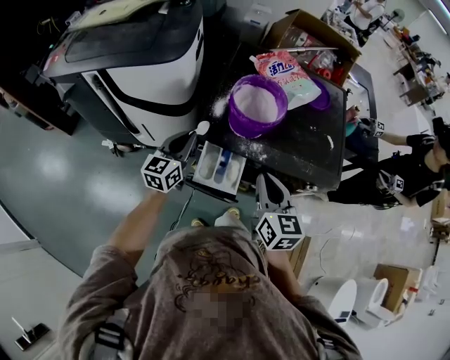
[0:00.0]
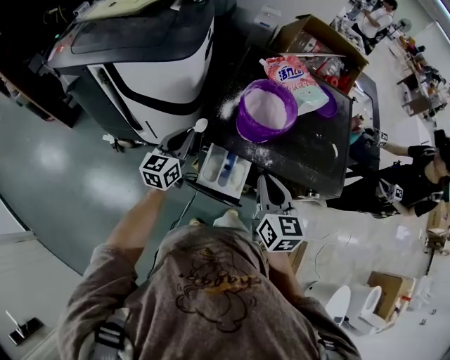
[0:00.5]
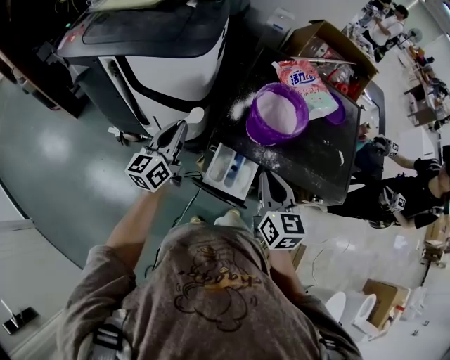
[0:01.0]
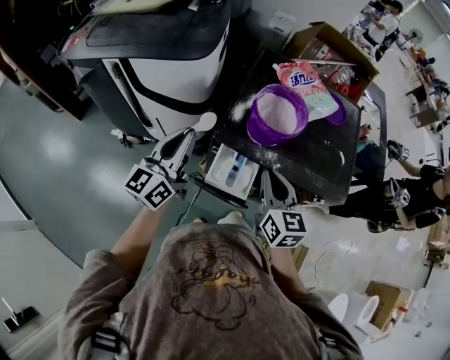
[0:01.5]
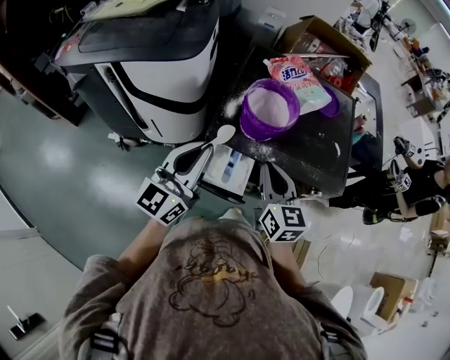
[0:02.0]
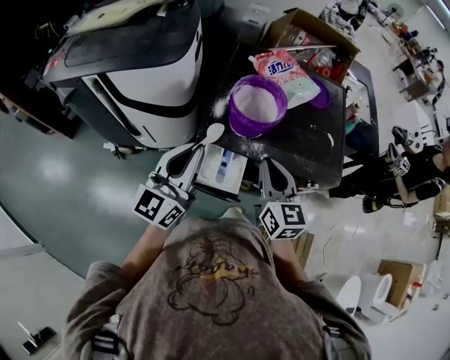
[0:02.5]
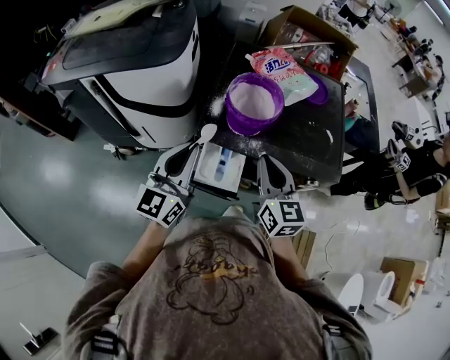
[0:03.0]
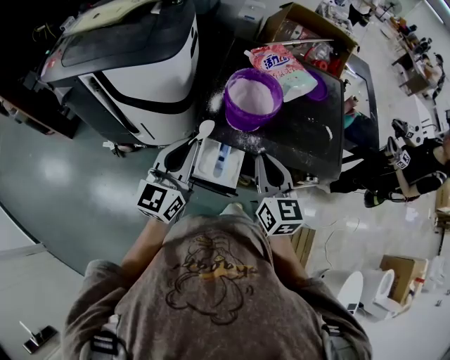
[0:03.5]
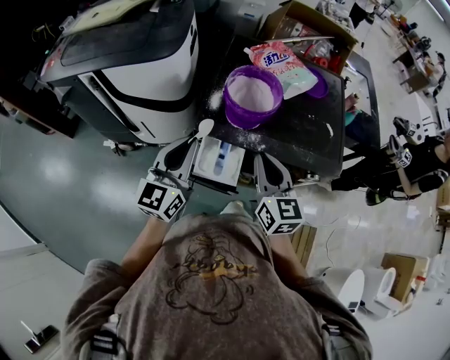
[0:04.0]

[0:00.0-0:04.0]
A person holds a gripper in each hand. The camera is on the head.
0:00.0 to 0:02.0: The left gripper moves upward and backward, some 20 cm, and rotates some 20 degrees.
0:02.0 to 0:04.0: The grippers stay close to where they were, moving slightly.

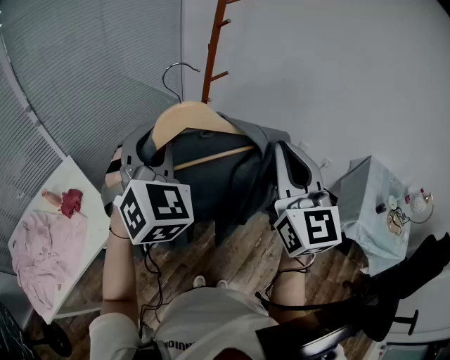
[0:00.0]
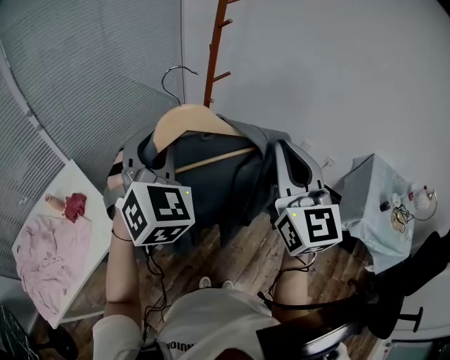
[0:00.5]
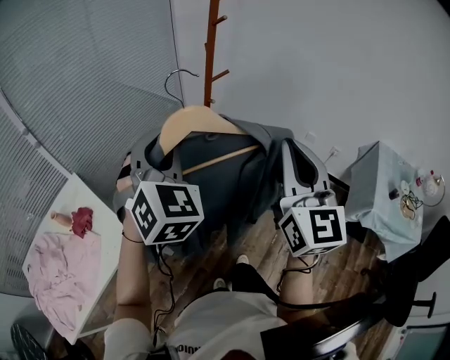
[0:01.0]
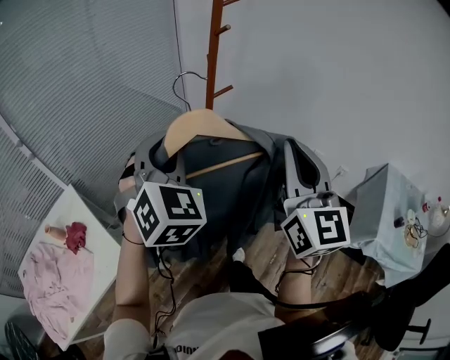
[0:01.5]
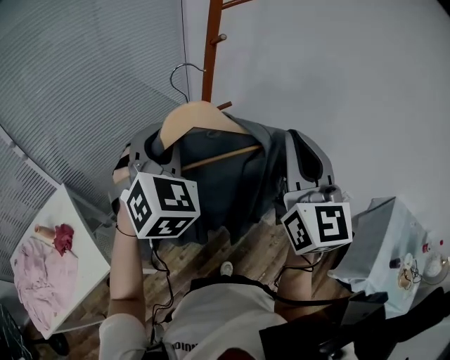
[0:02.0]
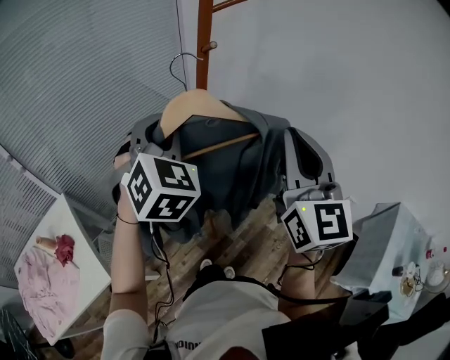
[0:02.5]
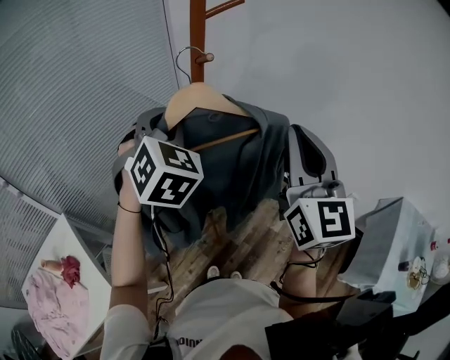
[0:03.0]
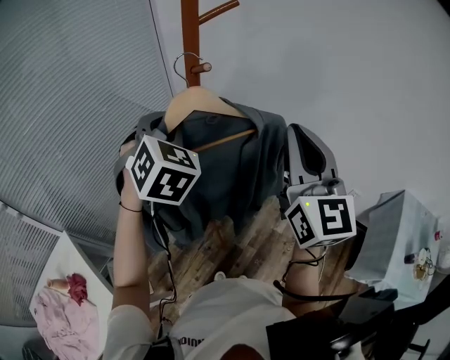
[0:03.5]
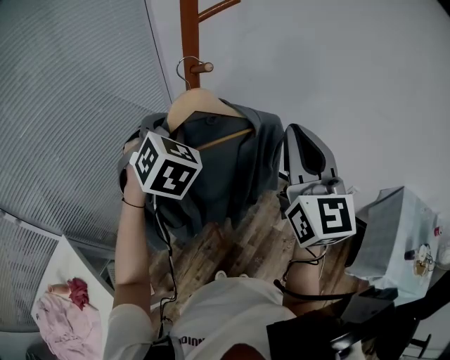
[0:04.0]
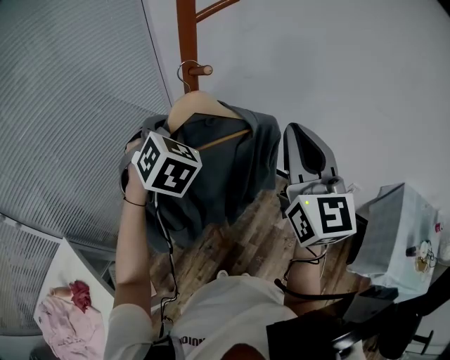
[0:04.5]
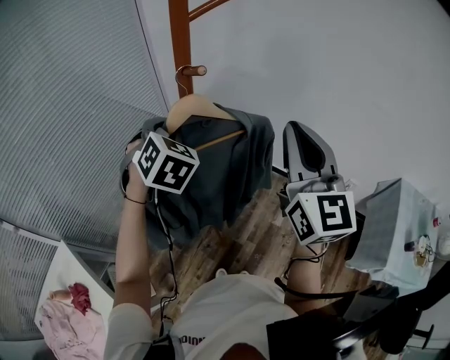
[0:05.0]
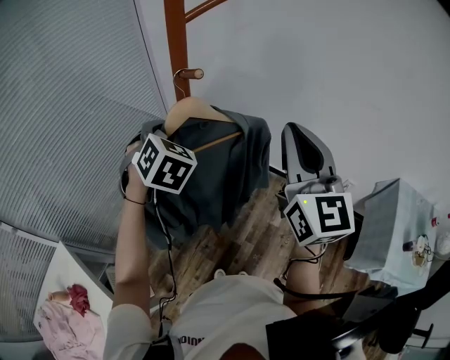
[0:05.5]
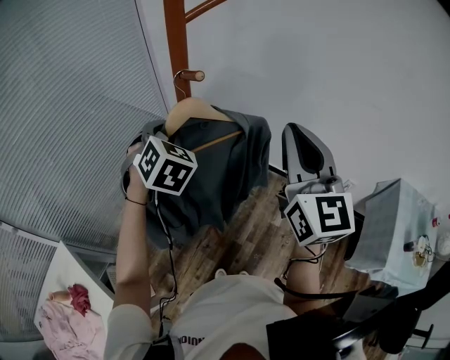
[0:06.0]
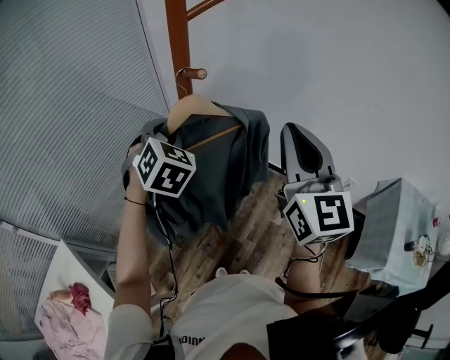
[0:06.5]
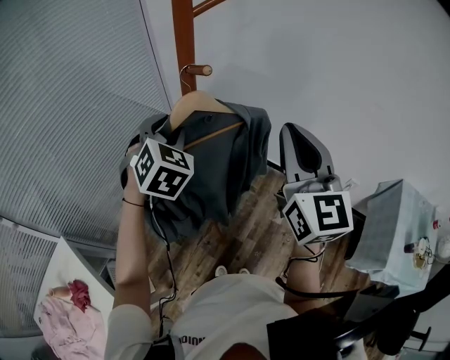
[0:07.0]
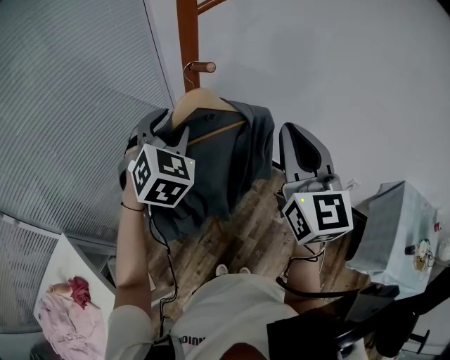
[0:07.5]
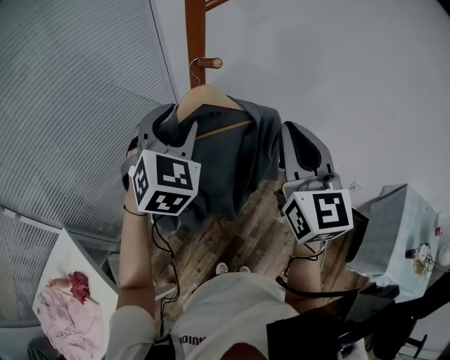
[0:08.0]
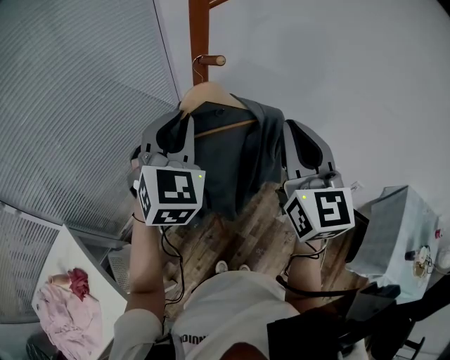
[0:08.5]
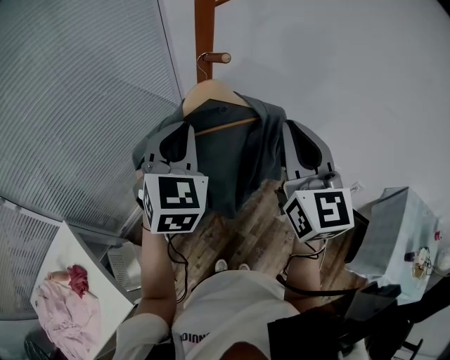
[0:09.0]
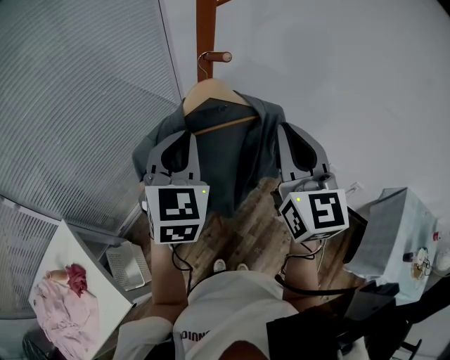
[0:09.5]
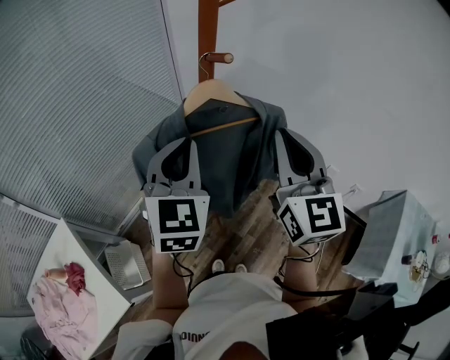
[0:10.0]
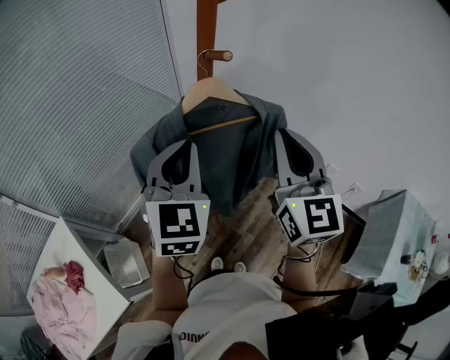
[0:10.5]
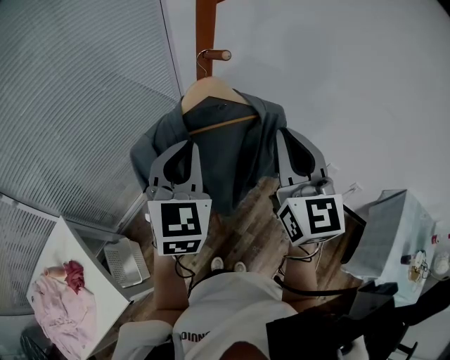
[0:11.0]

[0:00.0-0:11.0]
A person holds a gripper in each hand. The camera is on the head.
0:00.0 to 0:02.0: The grippers both shift forward by some 20 cm.
0:02.0 to 0:03.5: The right gripper travels forward by approximately 10 cm. Meanwhile the left gripper travels forward by about 15 cm.
0:03.5 to 0:05.5: The left gripper goes approximately 5 cm downward.
0:05.5 to 0:07.5: The left gripper opens up.
0:07.5 to 0:09.0: The left gripper is displaced backward by approximately 5 cm, and closes.
0:09.0 to 0:11.0: There are only small adjustments of the grippers.

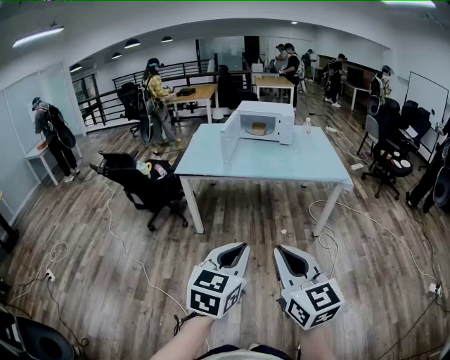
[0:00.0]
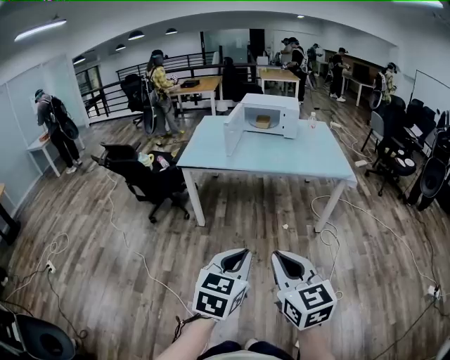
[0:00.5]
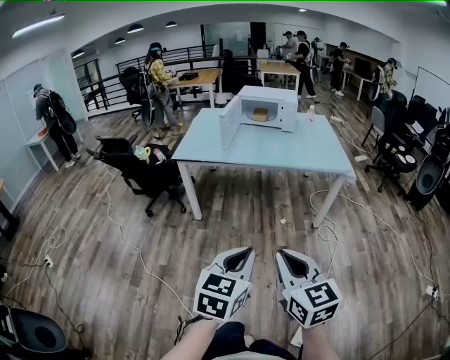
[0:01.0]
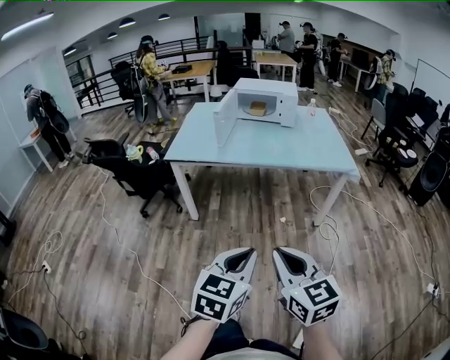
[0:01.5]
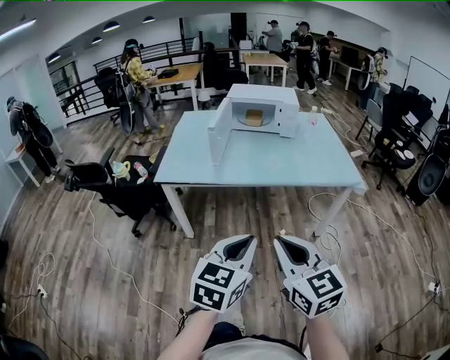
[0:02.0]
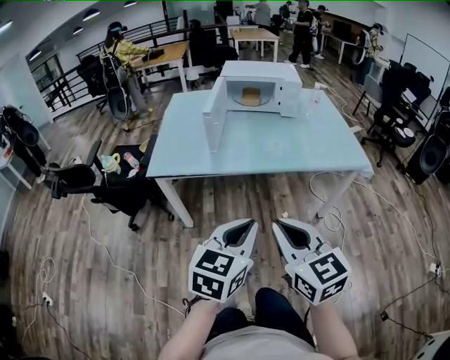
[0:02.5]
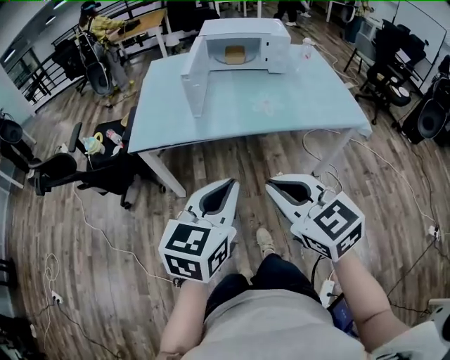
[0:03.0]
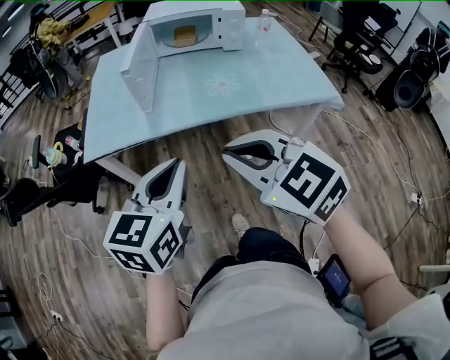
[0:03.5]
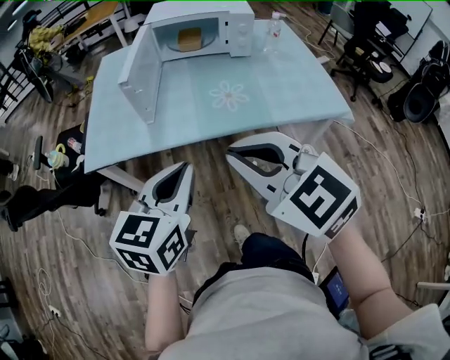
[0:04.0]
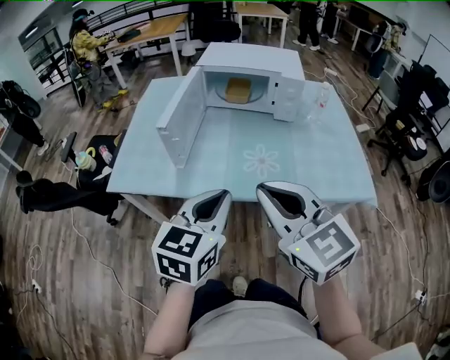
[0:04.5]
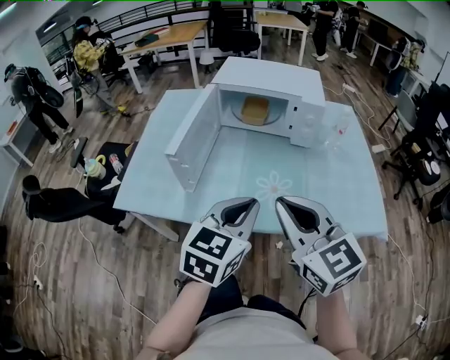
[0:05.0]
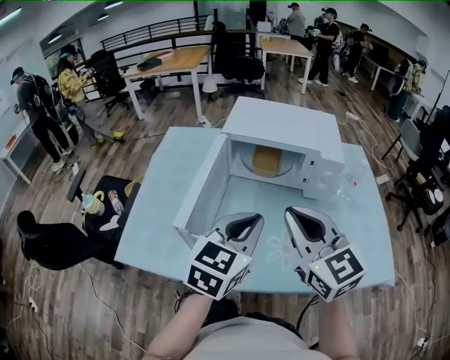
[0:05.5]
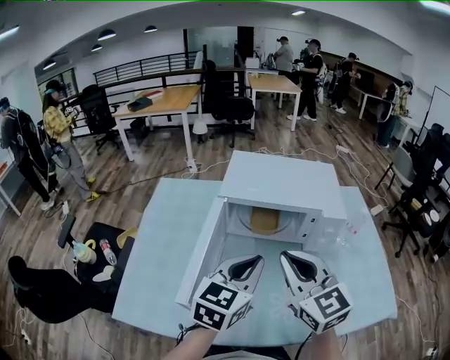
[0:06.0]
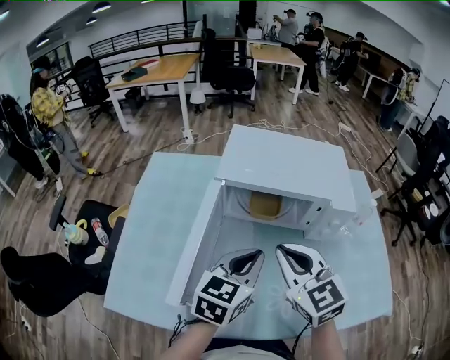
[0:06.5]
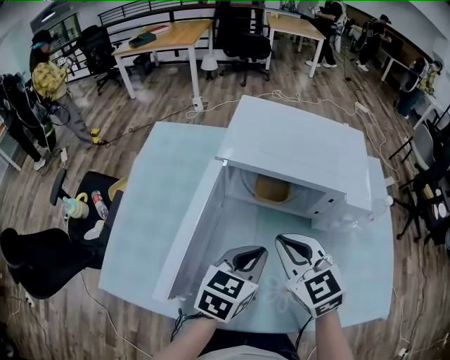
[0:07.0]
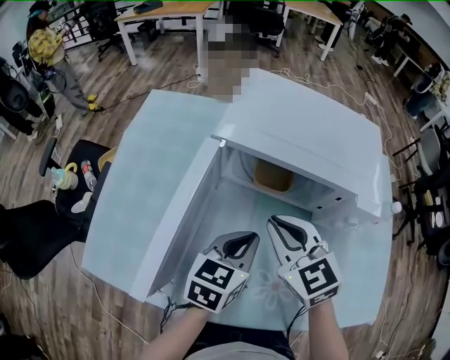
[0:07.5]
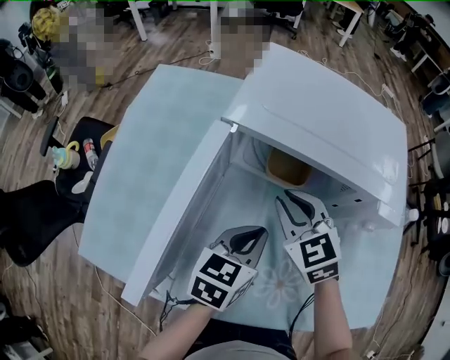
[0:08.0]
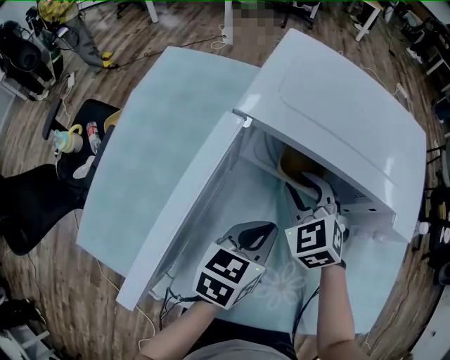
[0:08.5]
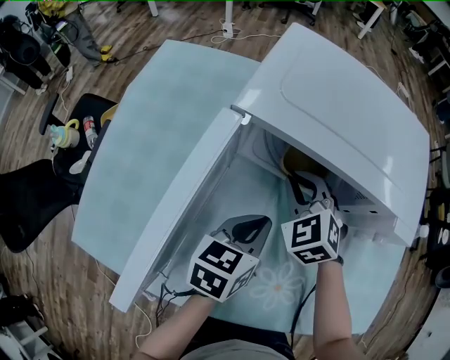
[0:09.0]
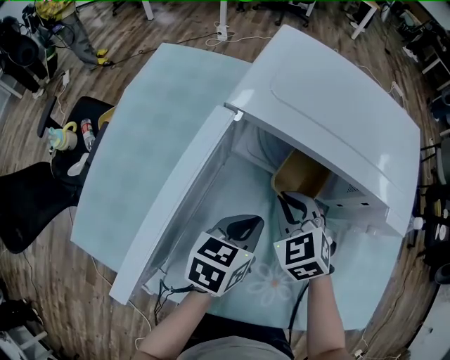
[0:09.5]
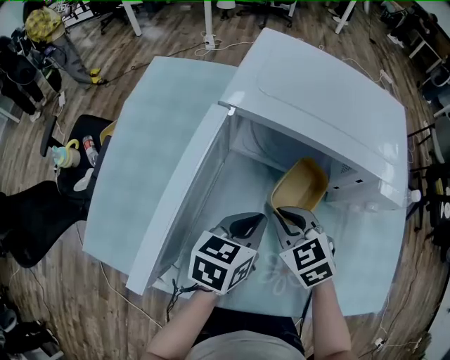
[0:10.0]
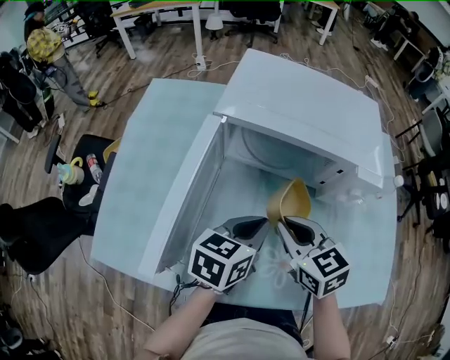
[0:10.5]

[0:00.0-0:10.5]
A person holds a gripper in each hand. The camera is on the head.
0:00.0 to 0:02.0: The grippers both shift forward by roughly 25 cm.
0:02.0 to 0:04.0: The two grippers go approximately 25 cm forward. The right gripper rotates about 30 degrees.
0:04.0 to 0:06.5: Both grippers are carried forward, roughly 50 cm.
0:06.5 to 0:08.5: The right gripper shifts about 25 cm downward and forward, turns by approximately 30 degrees, and opens up; the left gripper heads downward and forward, covering about 15 cm, and changes its angle by approximately 20 degrees.
0:08.5 to 0:10.5: The right gripper moves backward and upward, roughly 15 cm, swivels some 40 degrees, and closes up. The left gripper shifts some 5 cm upward and backward.

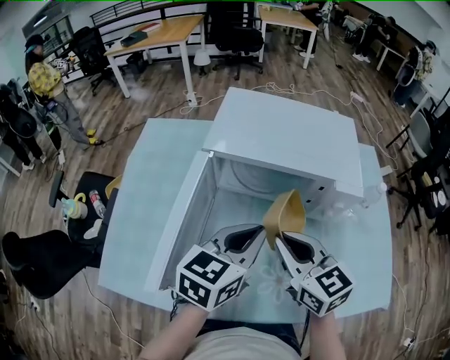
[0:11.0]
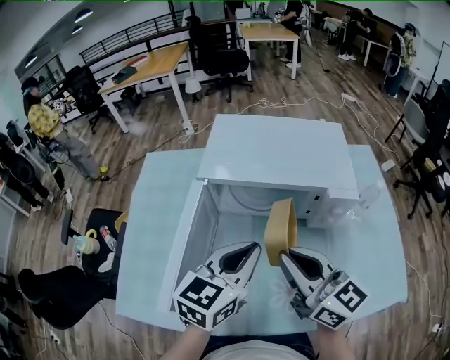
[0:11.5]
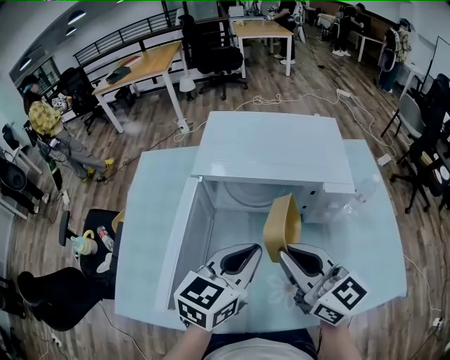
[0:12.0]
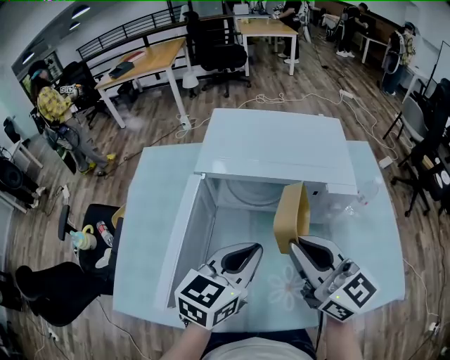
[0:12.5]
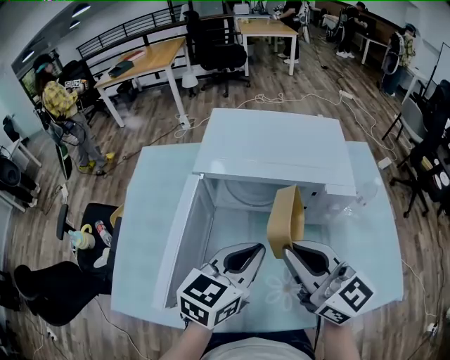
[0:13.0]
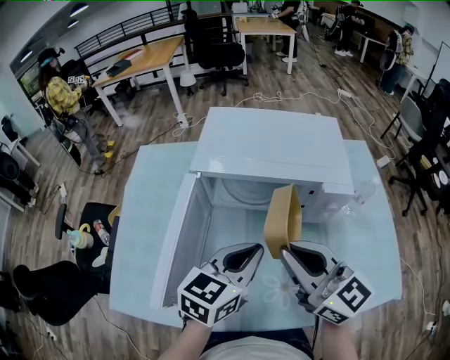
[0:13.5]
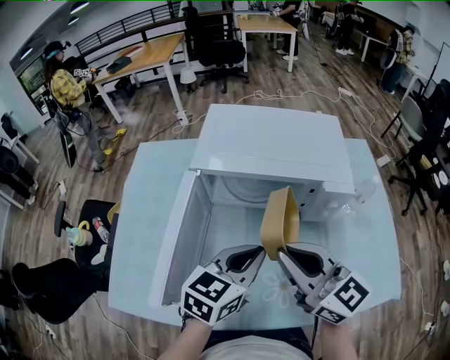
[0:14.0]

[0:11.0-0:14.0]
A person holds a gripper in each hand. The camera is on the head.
0:11.0 to 0:12.5: The right gripper shifts roughly 5 cm upward, and turns by roughly 20 degrees.
0:12.5 to 0:14.0: There are only small adjustments of the grippers.
